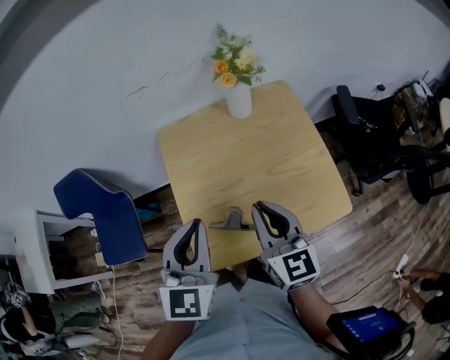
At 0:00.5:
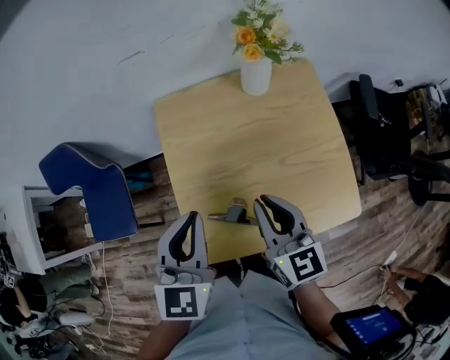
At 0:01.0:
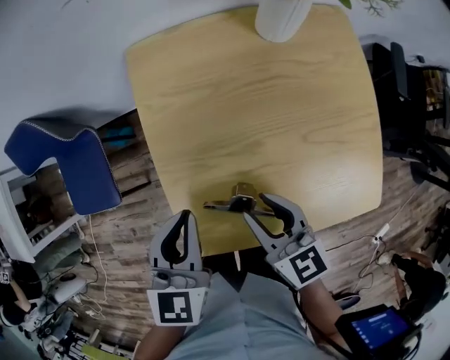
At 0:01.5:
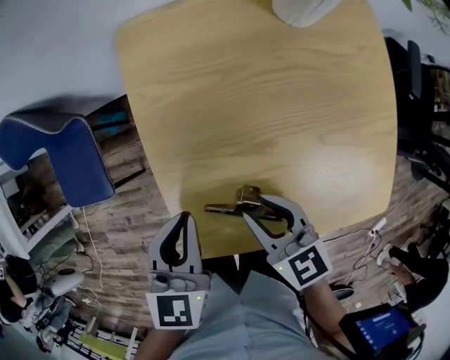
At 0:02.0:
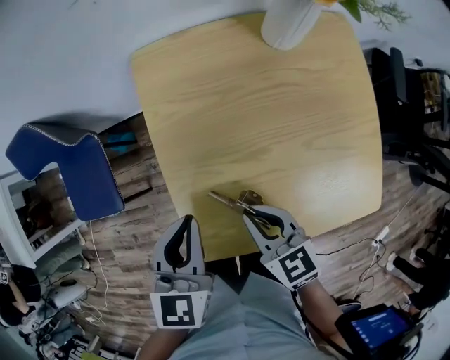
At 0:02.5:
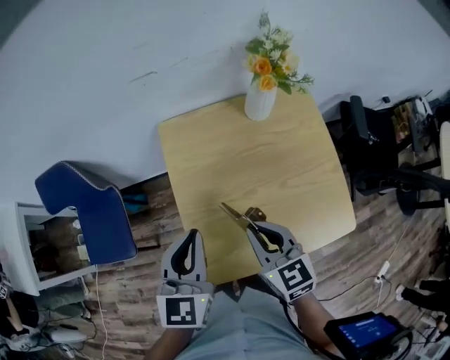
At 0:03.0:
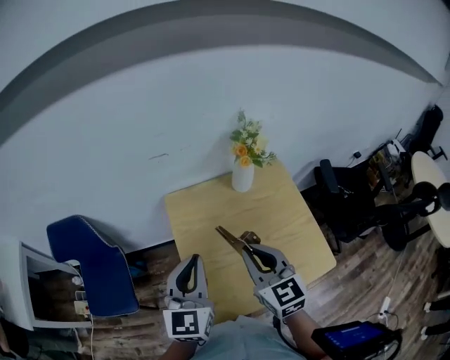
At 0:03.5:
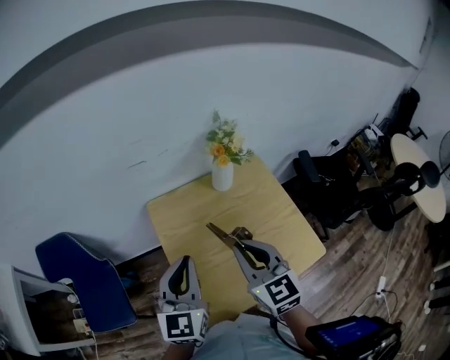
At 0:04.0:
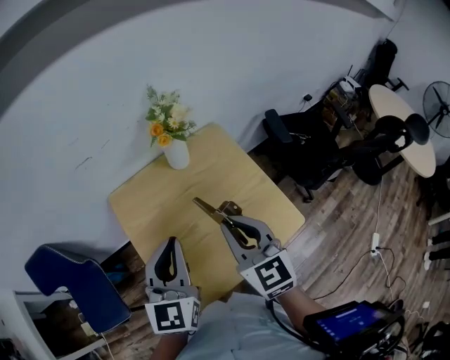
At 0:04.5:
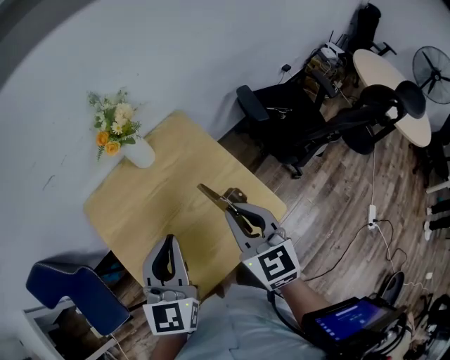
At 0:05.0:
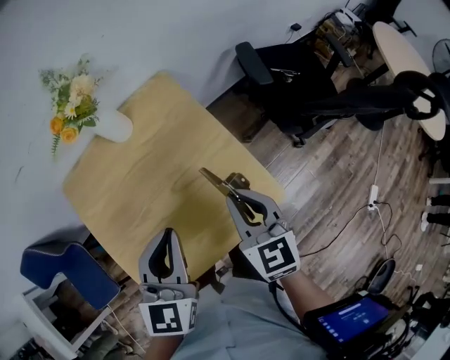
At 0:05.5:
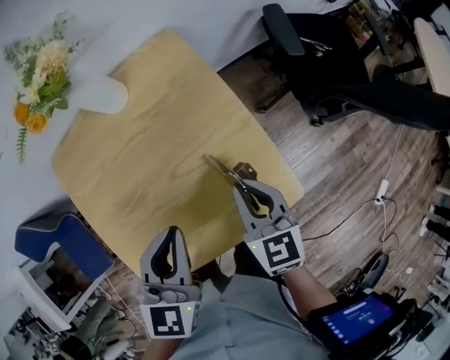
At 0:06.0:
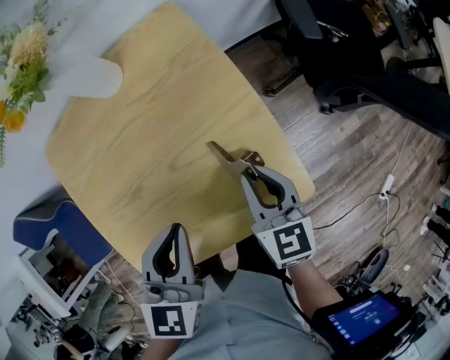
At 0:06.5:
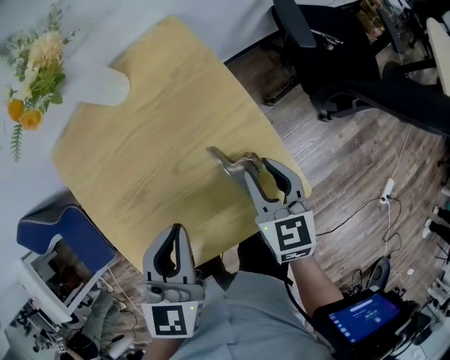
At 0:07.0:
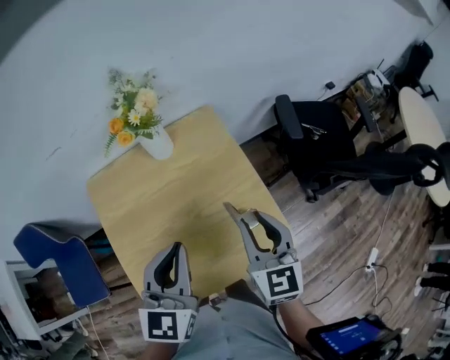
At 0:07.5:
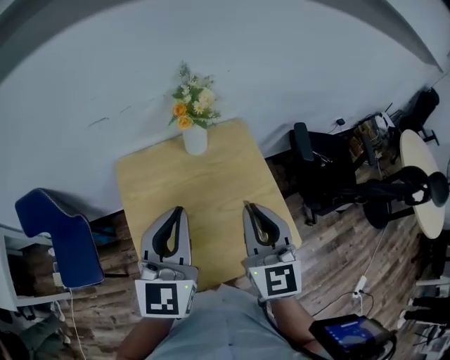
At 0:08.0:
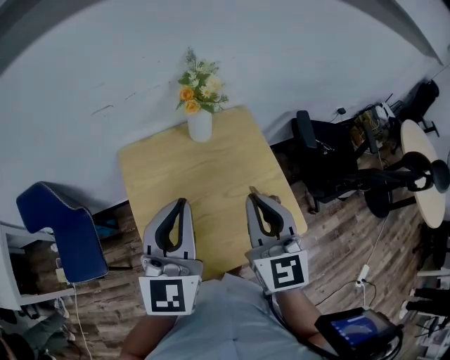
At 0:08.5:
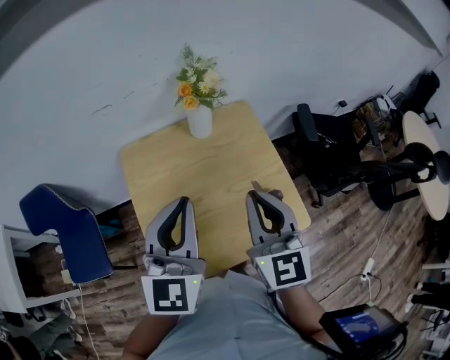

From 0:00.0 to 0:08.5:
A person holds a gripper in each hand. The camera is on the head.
From 0:00.0 to 0:02.0: The left gripper goes roughly 20 cm downward and forward, and changes its angle by about 20 degrees. Meanwhile the right gripper travels downward and to the left by about 25 cm, changes its angle by roughly 40 degrees, and opens, then closes again.
From 0:02.0 to 0:04.0: The two grippers go approximately 25 cm upward. The right gripper turns by roughly 40 degrees. Meanwhile the left gripper turns by approximately 30 degrees.
From 0:04.0 to 0:06.5: Both grippers move downward and to the right, about 30 cm. The right gripper rotates some 30 degrees, while the left gripper changes its angle by roughly 30 degrees.
From 0:06.5 to 0:08.5: Both grippers move upward and to the left, about 30 cm. The left gripper swivels approximately 30 degrees. The right gripper changes its angle by about 30 degrees, and closes.

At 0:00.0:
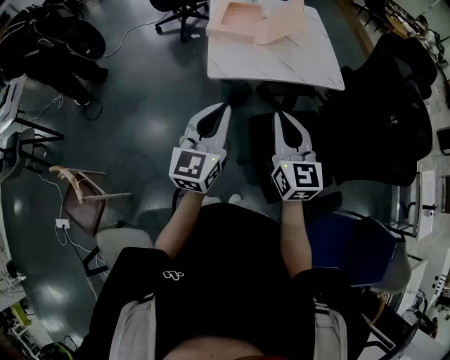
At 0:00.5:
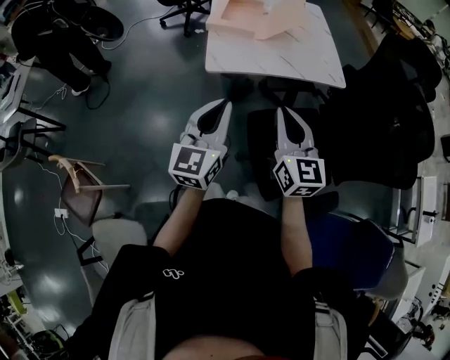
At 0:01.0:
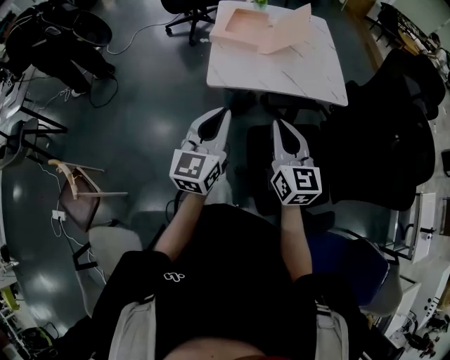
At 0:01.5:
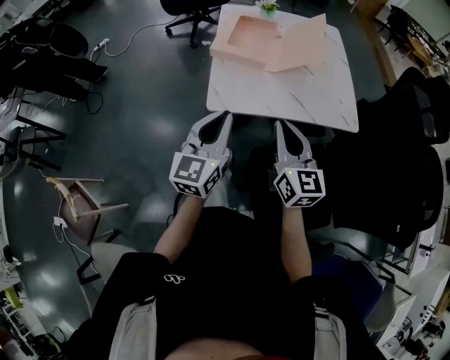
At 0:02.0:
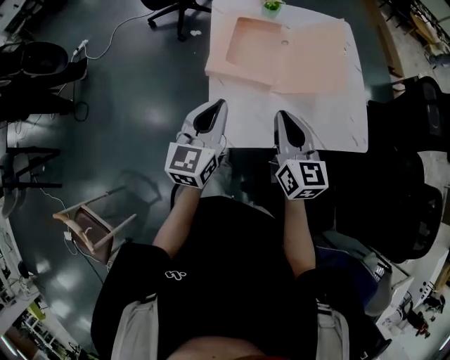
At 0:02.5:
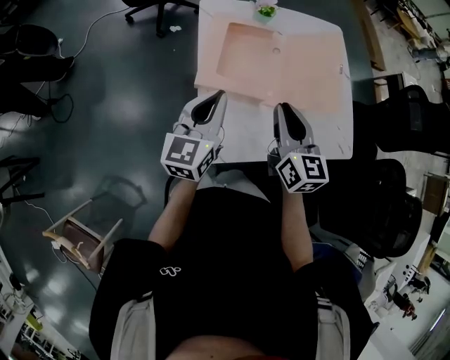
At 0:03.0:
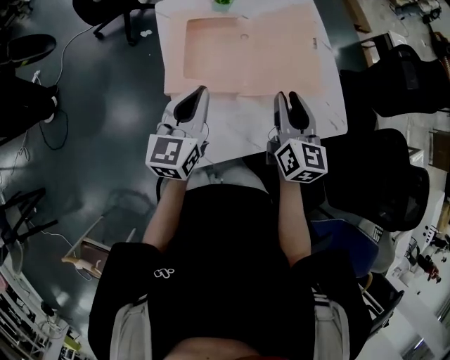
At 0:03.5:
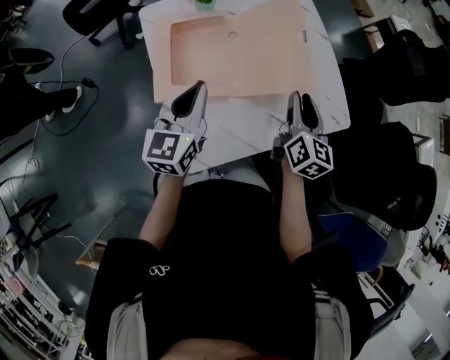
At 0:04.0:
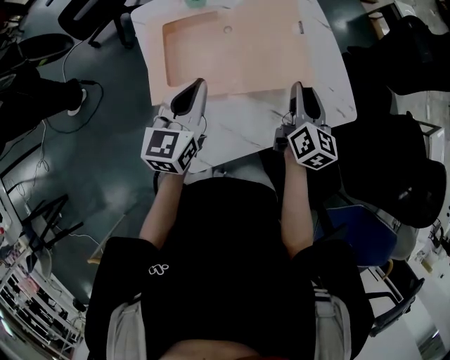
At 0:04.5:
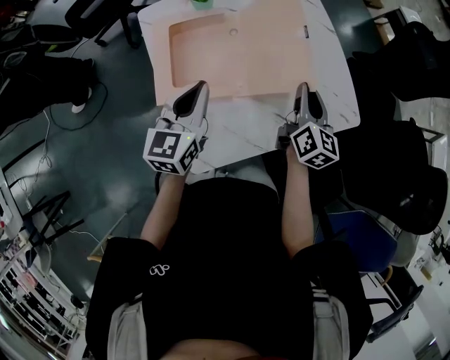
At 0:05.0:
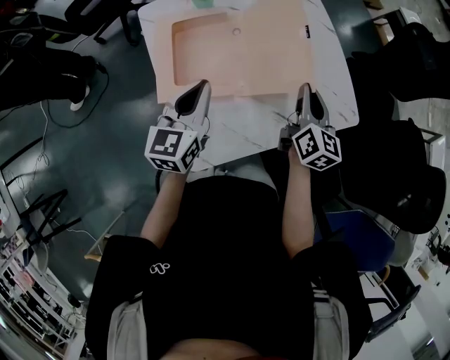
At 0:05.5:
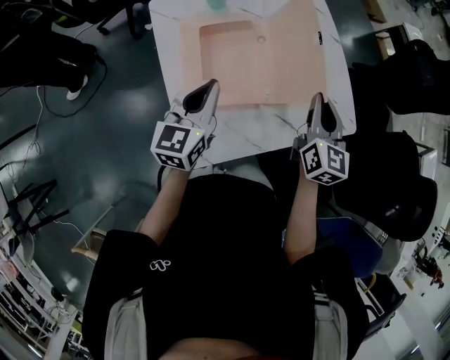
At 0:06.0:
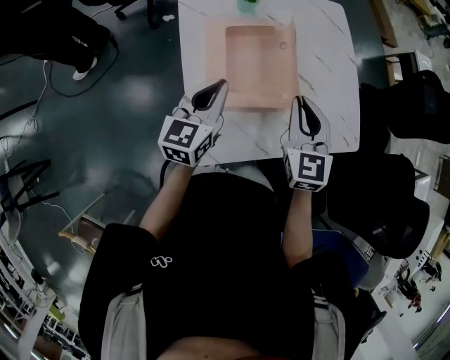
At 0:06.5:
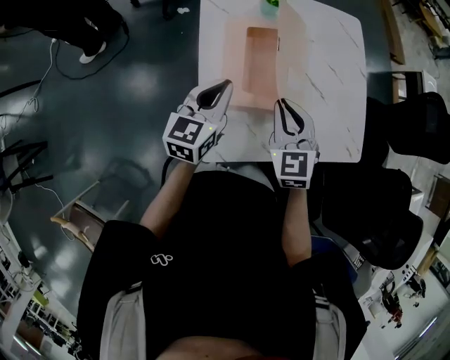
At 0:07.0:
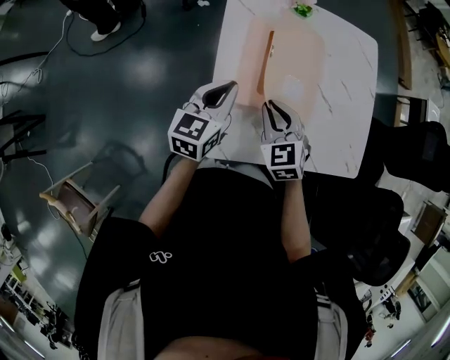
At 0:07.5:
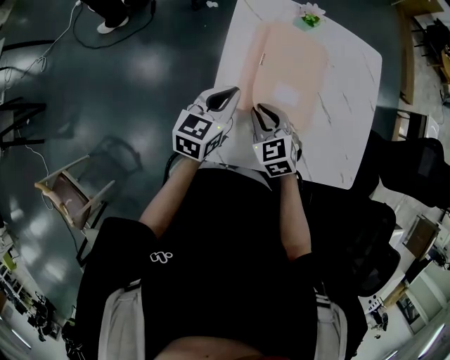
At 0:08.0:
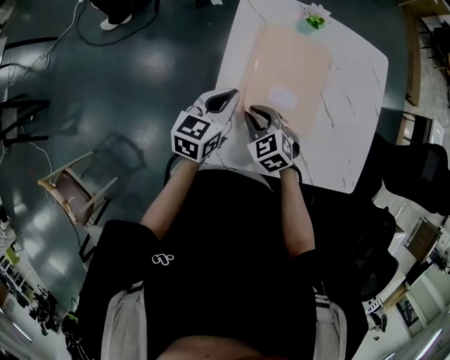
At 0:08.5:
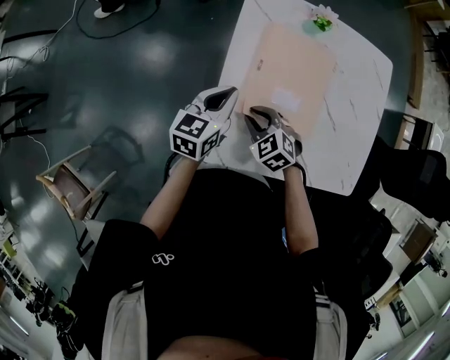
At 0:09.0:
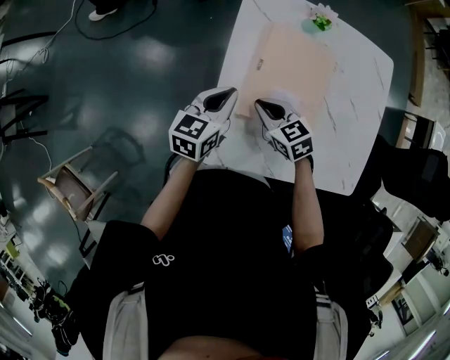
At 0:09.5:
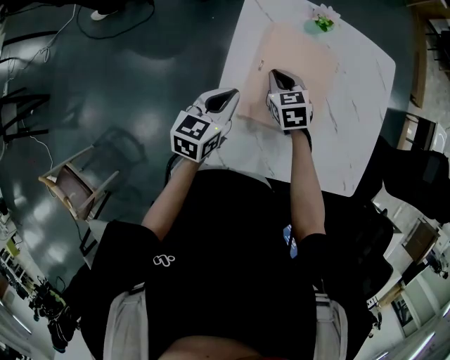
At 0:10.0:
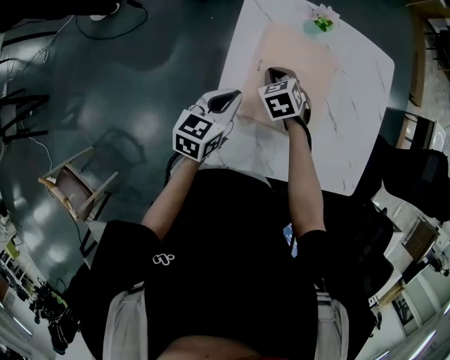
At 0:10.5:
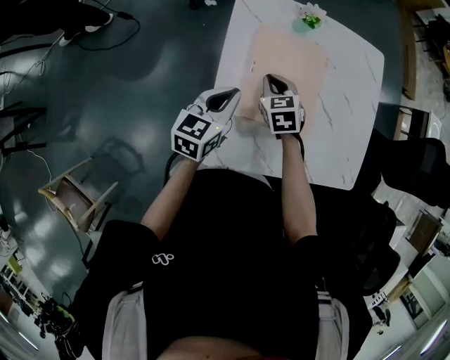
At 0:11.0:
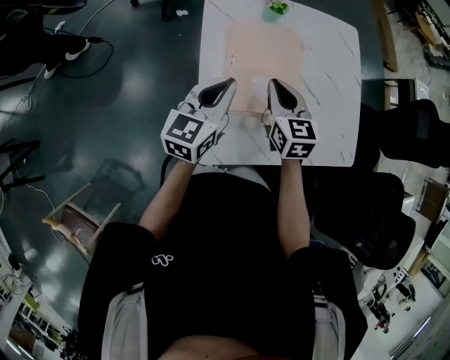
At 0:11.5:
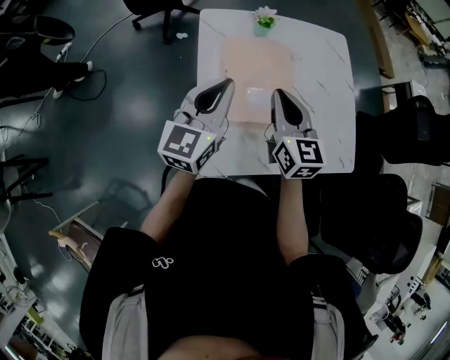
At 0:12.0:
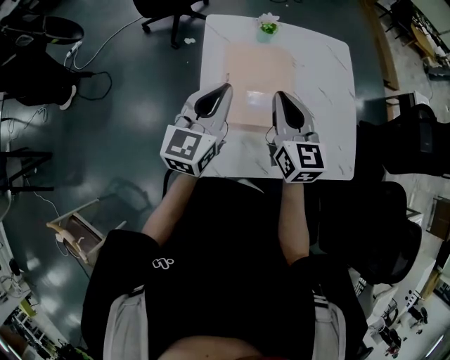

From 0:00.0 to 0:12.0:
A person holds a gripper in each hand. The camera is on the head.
From 0:00.0 to 0:02.0: Both grippers move forward, roughly 40 cm.
From 0:02.0 to 0:04.0: The right gripper ends up some 25 cm from where it was, rotates roughly 40 degrees, and opens up. Meanwhile the left gripper shifts by roughly 20 cm.
From 0:04.0 to 0:06.0: The right gripper goes roughly 15 cm to the left and upward, rolls counterclockwise, seen from behind, by roughly 40 degrees, and closes up.
From 0:06.0 to 0:08.0: The right gripper travels downward by about 20 cm, and turns by approximately 50 degrees, while the left gripper goes some 5 cm downward.
From 0:08.0 to 0:10.0: The right gripper moves forward, roughly 15 cm.
From 0:10.0 to 0:12.0: The left gripper is displaced upward by some 15 cm, and rotates some 30 degrees. Meanwhile the right gripper goes some 25 cm upward and backward, and points its fingers approximately 50 degrees further upward.

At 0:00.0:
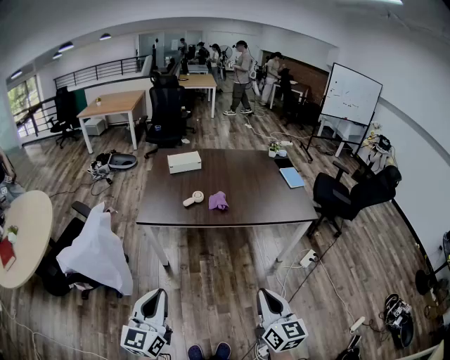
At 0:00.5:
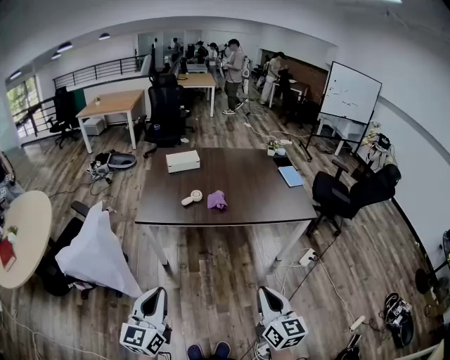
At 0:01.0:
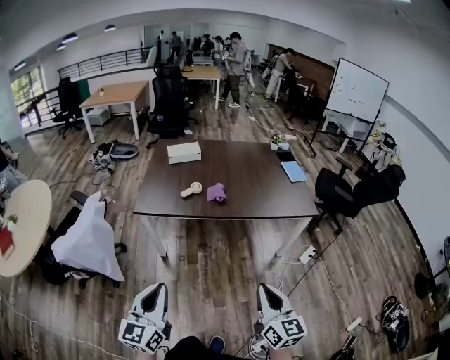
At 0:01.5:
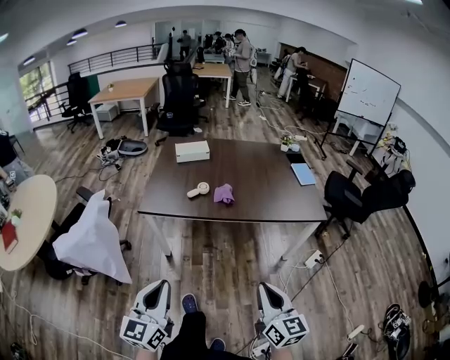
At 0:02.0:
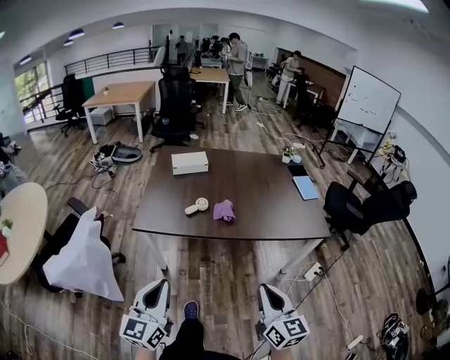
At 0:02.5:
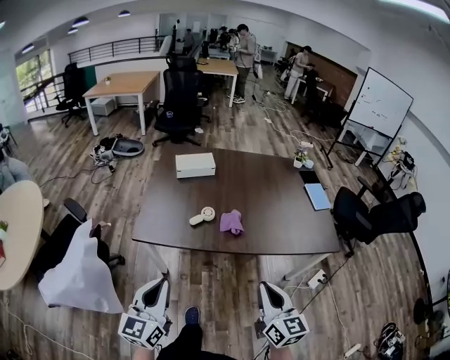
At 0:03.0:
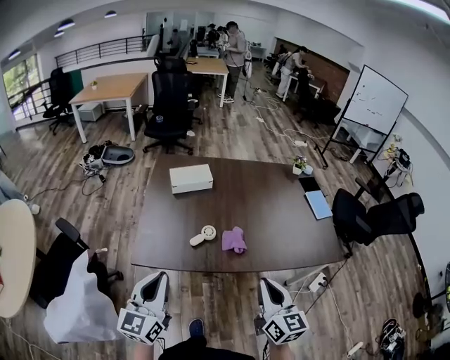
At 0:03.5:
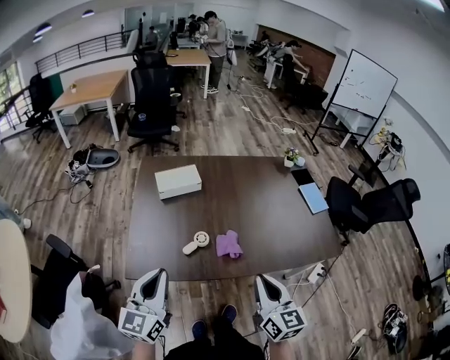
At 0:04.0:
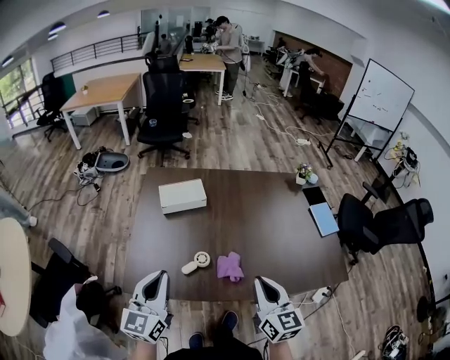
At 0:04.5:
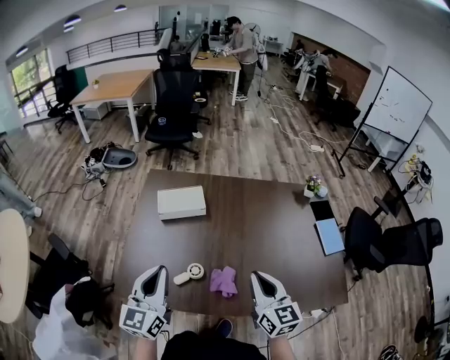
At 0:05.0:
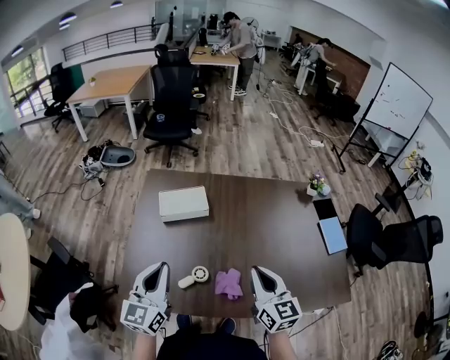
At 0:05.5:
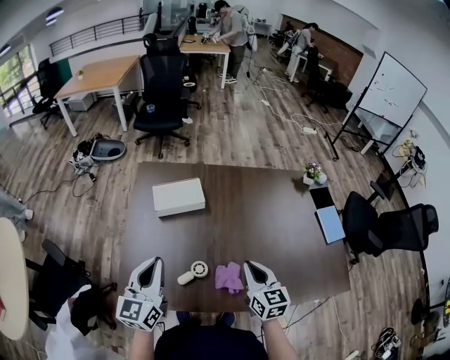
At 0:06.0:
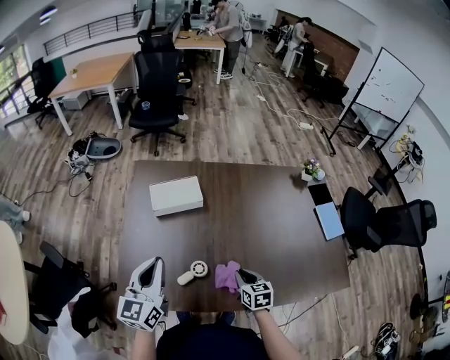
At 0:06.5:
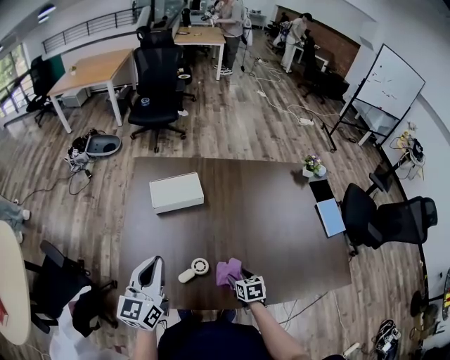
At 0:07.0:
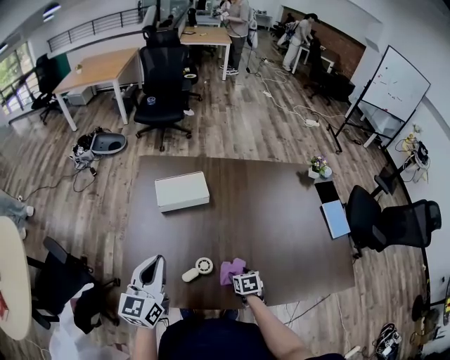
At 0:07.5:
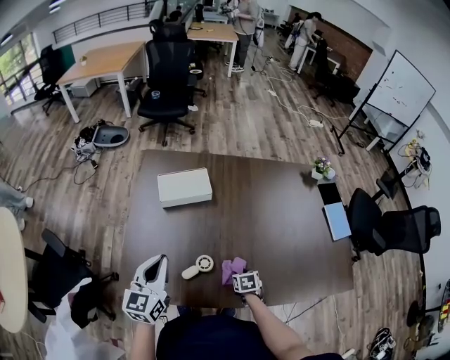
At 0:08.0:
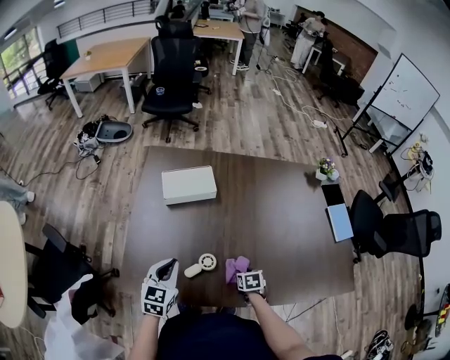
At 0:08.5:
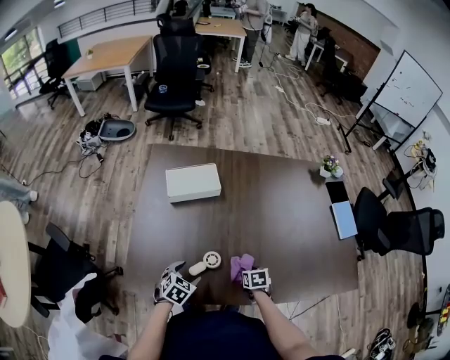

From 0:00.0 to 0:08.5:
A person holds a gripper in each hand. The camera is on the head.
From 0:00.0 to 0:02.0: Both grippers travel together forward, some 15 cm.
From 0:02.0 to 0:04.0: The pair of grippers is taken forward, about 40 cm.
From 0:04.0 to 0:06.5: The left gripper goes roughly 15 cm forward, while the right gripper heads downward and forward, covering approximately 35 cm, tilts its fingers roughly 40 degrees downward, and opens its fingers.
From 0:06.5 to 0:08.5: The right gripper goes some 5 cm downward, and closes up. Meanwhile the left gripper goes approximately 30 cm downward, angles its fingers downward, by roughly 50 degrees, and opens its fingers.
